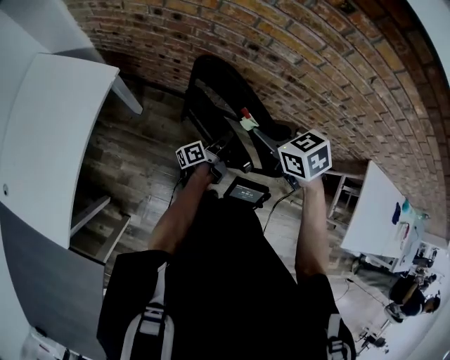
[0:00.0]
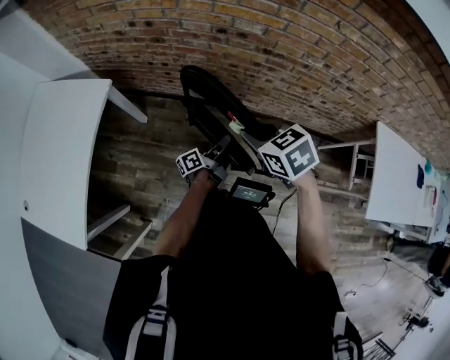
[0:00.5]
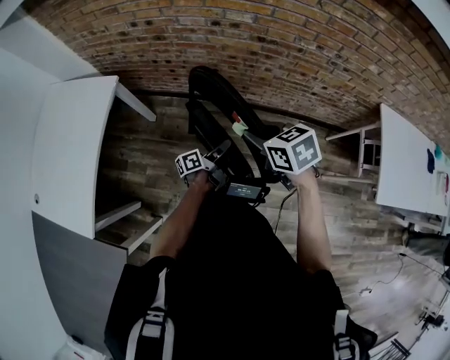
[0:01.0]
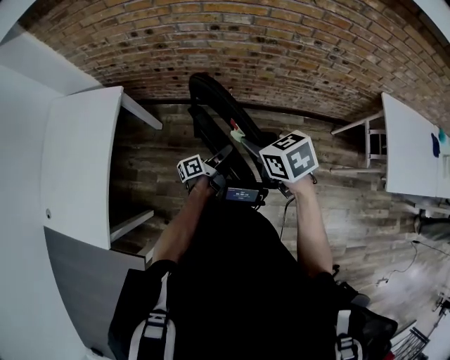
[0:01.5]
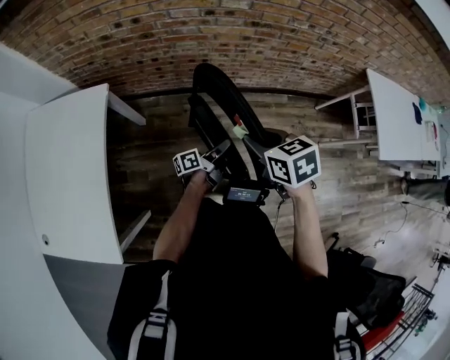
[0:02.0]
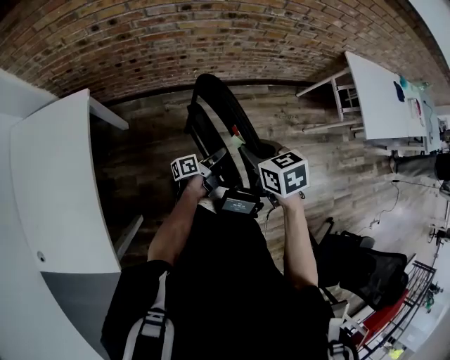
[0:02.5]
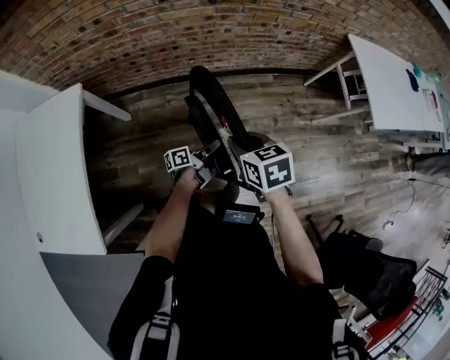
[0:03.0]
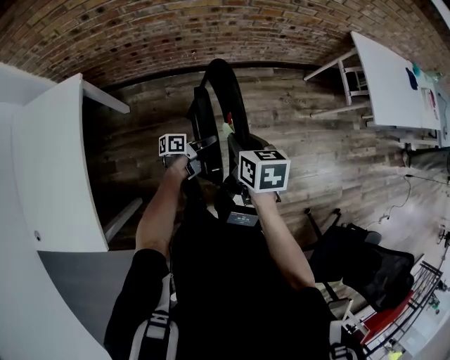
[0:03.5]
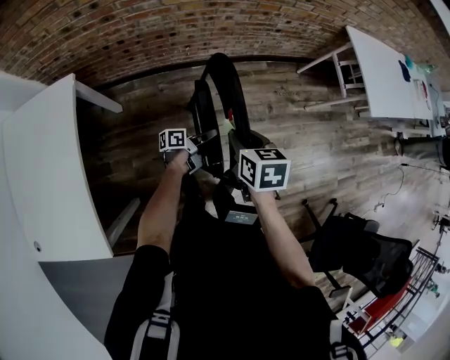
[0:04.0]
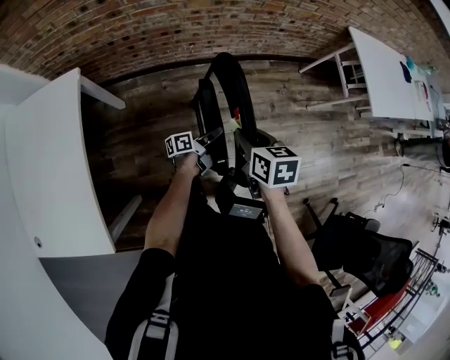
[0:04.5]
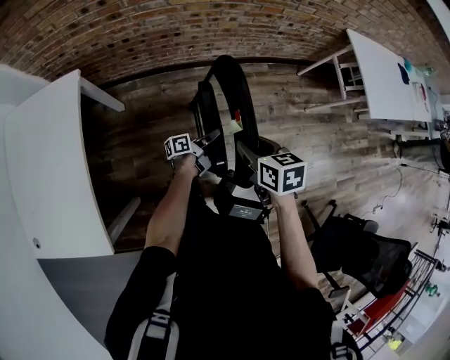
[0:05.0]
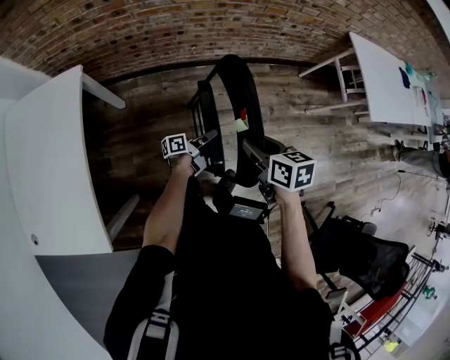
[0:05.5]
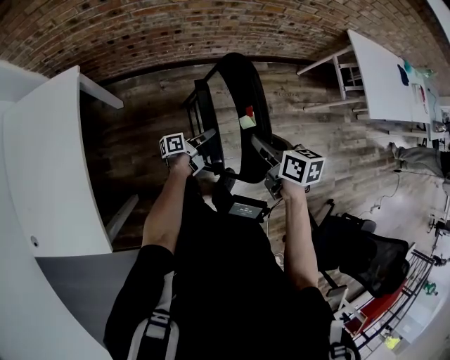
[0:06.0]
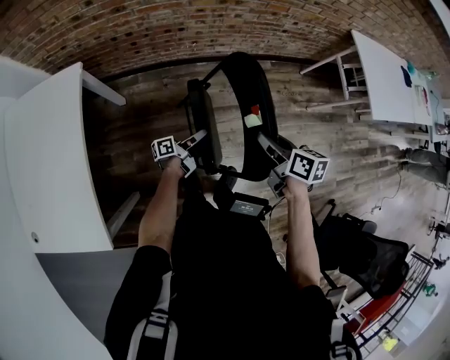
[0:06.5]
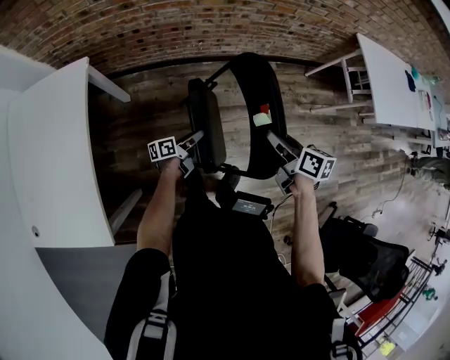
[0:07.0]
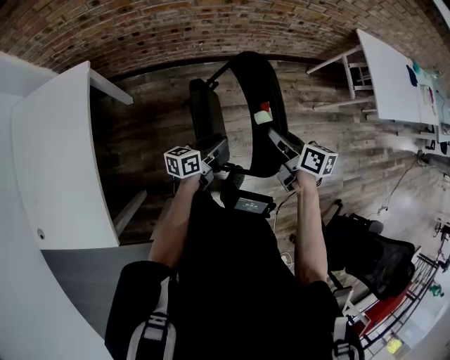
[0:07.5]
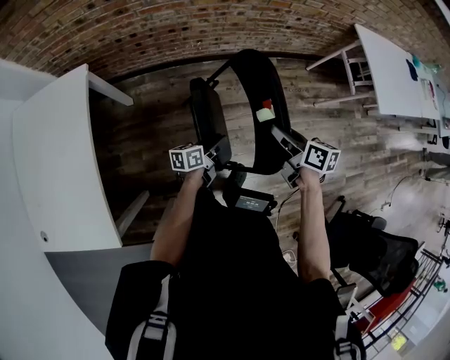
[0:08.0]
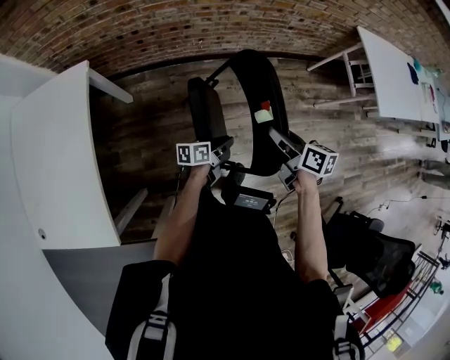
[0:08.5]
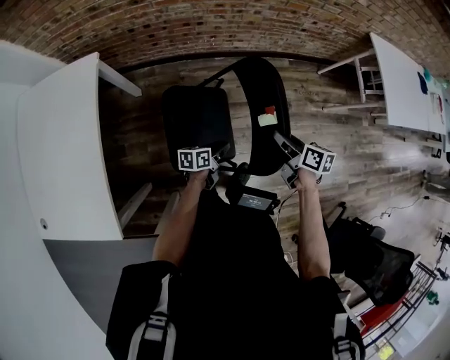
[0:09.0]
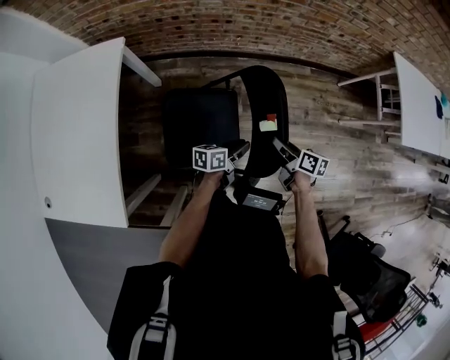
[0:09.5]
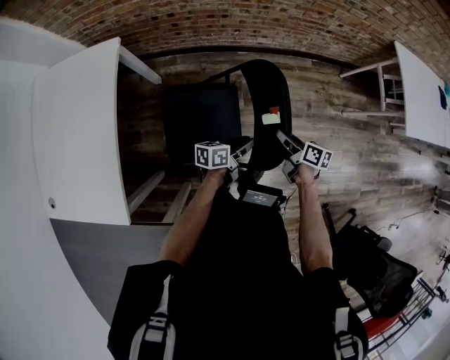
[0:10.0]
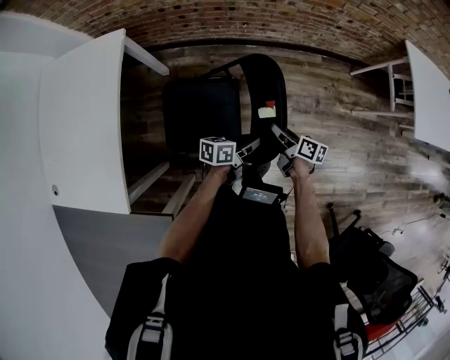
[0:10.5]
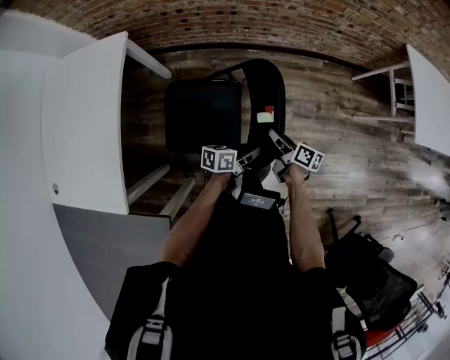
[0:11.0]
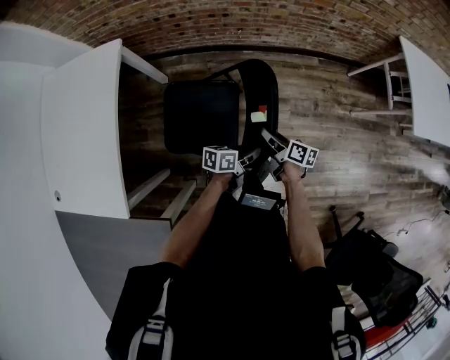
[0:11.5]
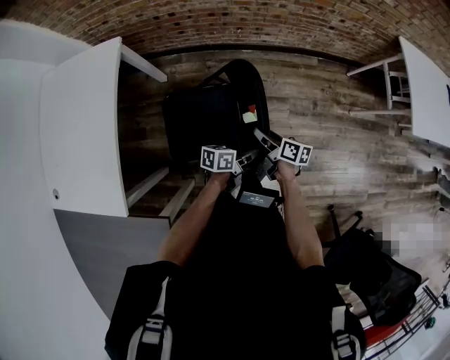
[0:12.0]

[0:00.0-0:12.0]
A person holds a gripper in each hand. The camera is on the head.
0:00.0 to 0:02.0: The right gripper changes place by some 20 cm, and changes its angle by some 30 degrees.
0:02.0 to 0:04.0: The right gripper shifts by some 15 cm, and turns by approximately 30 degrees.
0:04.0 to 0:06.0: The right gripper shifts by some 5 cm.
0:08.0 to 0:10.0: The right gripper is displaced downward by some 15 cm.
0:10.0 to 0:12.0: The right gripper ends up some 5 cm from where it was.

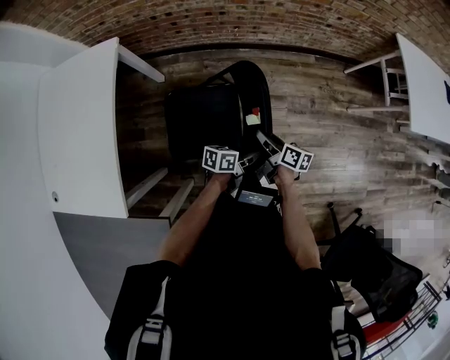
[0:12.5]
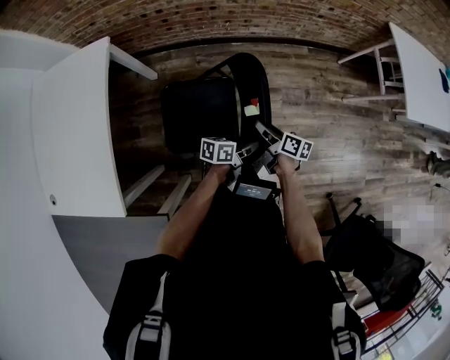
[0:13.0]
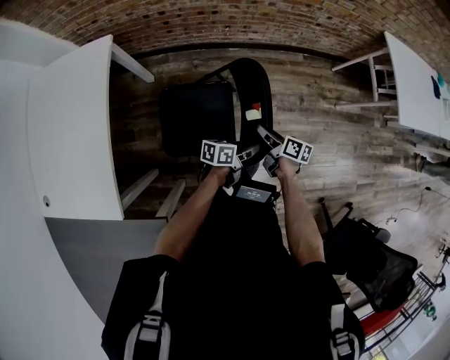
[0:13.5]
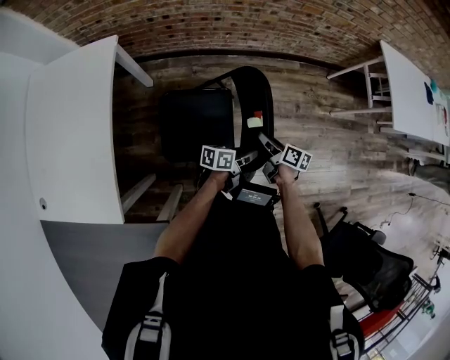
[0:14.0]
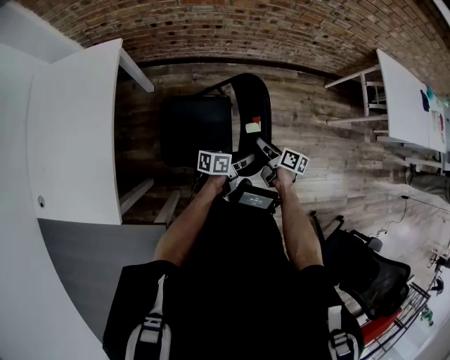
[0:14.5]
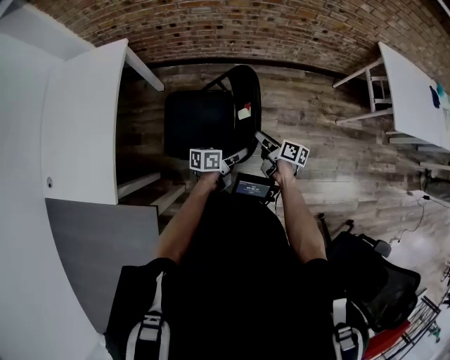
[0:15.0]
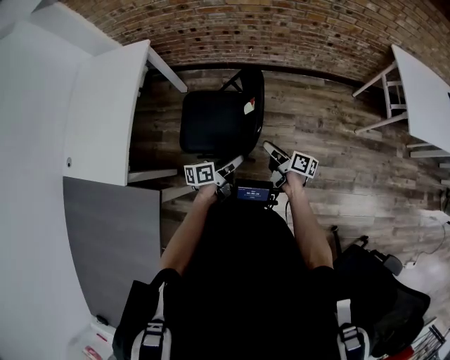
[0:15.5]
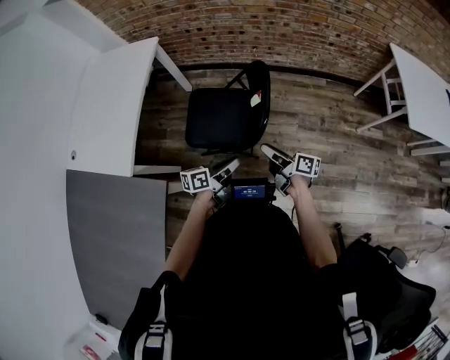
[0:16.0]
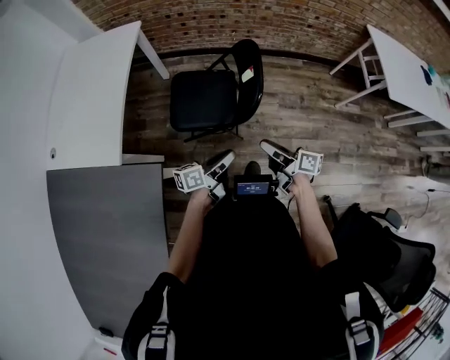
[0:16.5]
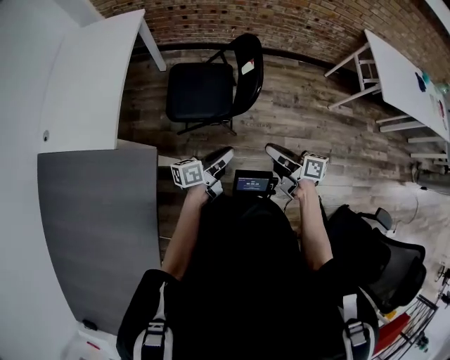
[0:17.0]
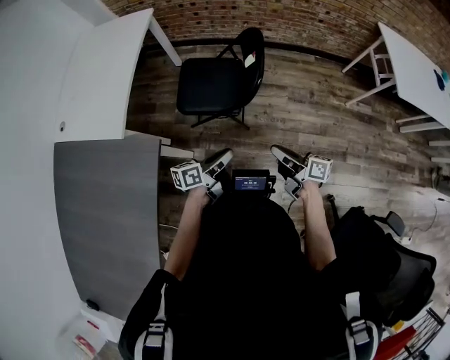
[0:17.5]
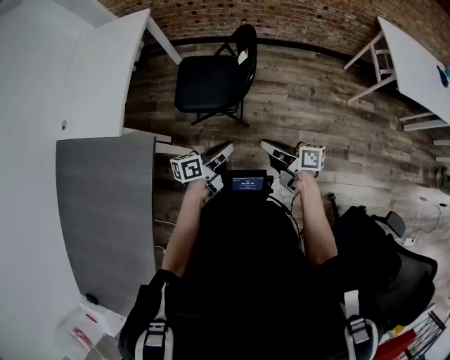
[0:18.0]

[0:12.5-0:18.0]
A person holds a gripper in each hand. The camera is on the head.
0:14.5 to 0:16.0: The right gripper shifts by roughly 20 cm, and rotates some 30 degrees.
0:16.0 to 0:18.0: The right gripper shifts by roughly 20 cm, and closes.

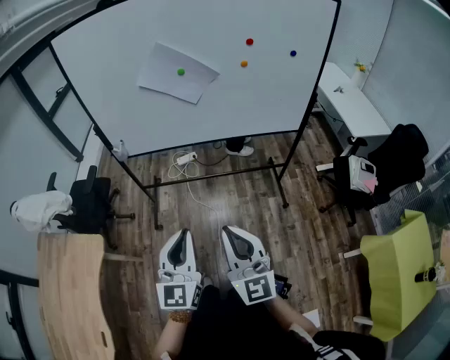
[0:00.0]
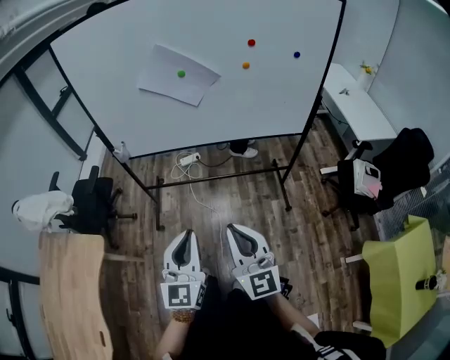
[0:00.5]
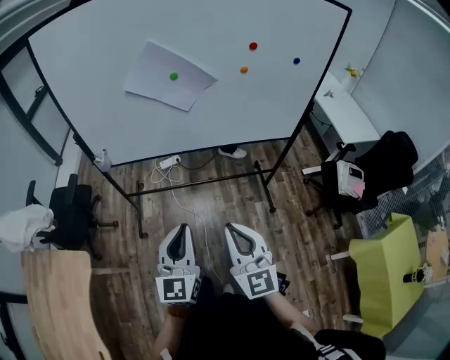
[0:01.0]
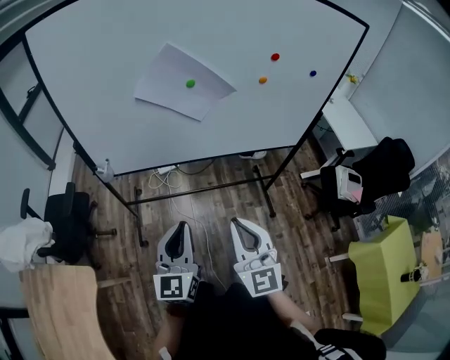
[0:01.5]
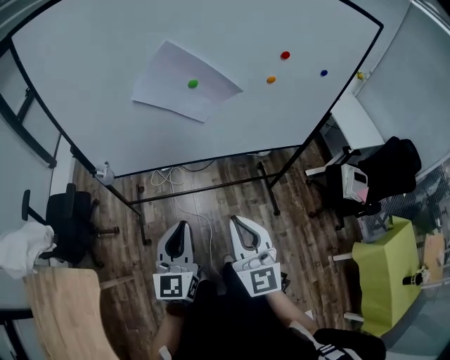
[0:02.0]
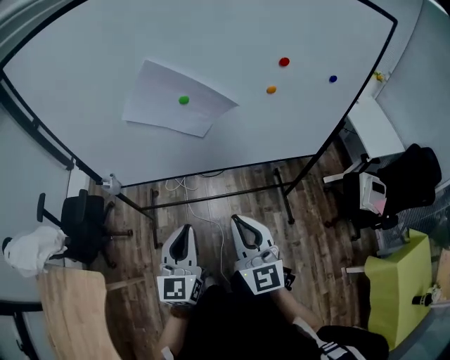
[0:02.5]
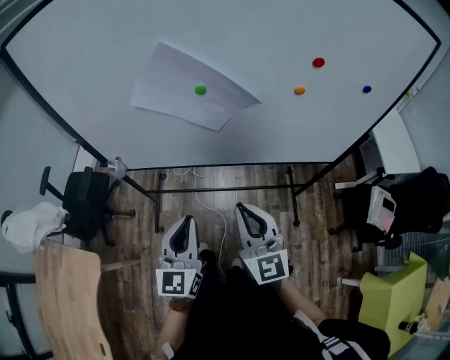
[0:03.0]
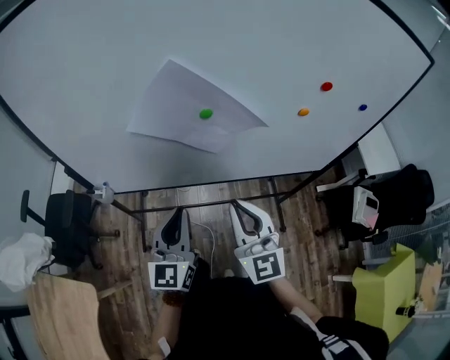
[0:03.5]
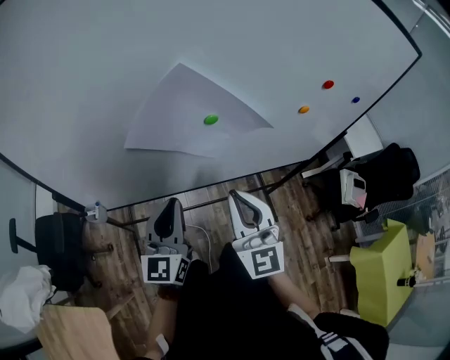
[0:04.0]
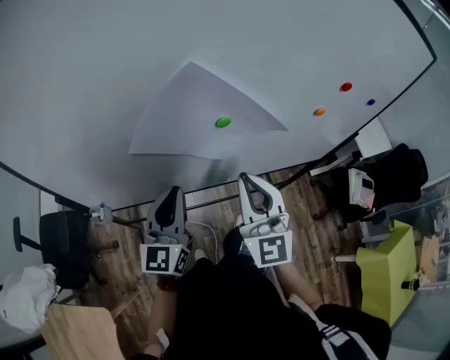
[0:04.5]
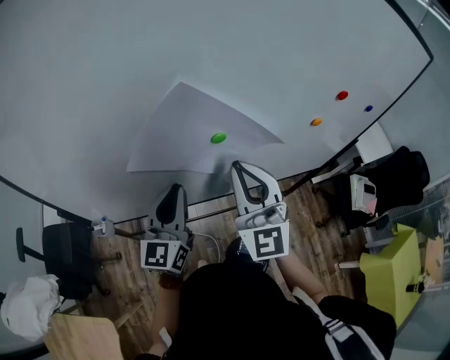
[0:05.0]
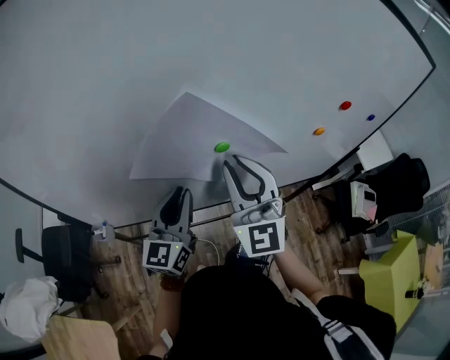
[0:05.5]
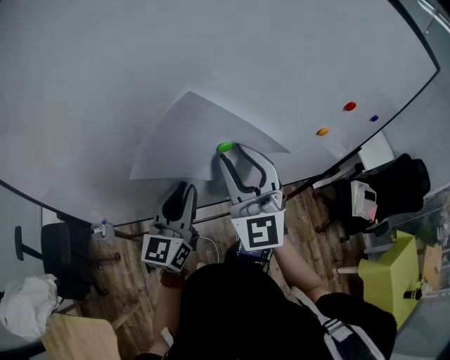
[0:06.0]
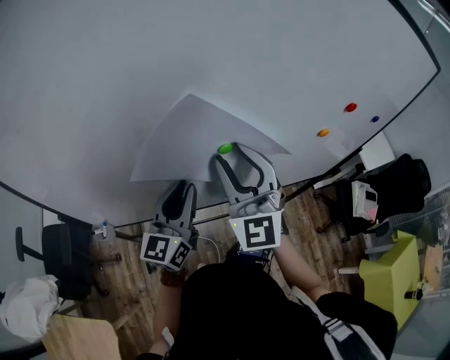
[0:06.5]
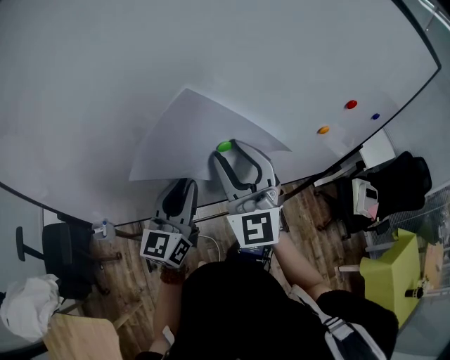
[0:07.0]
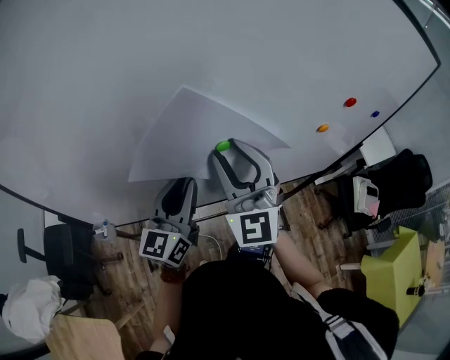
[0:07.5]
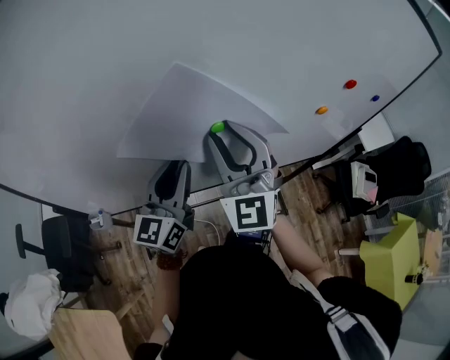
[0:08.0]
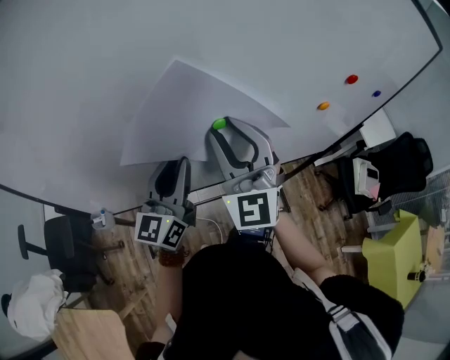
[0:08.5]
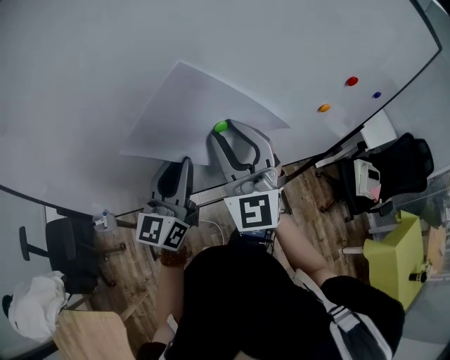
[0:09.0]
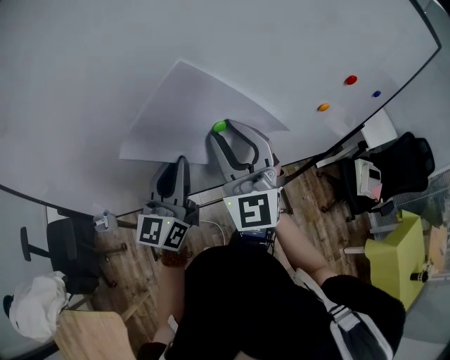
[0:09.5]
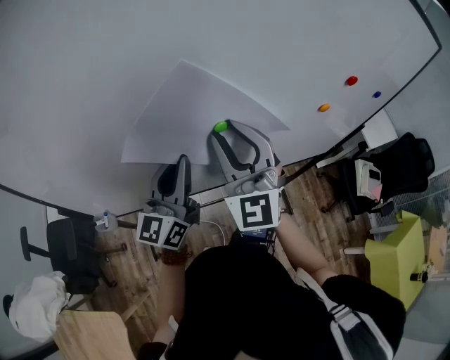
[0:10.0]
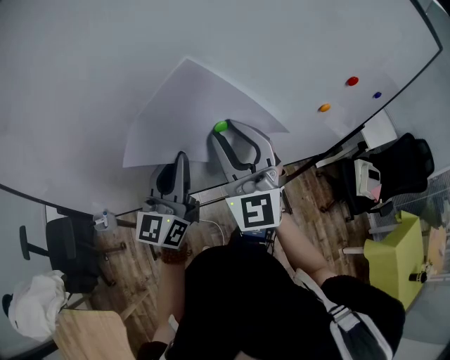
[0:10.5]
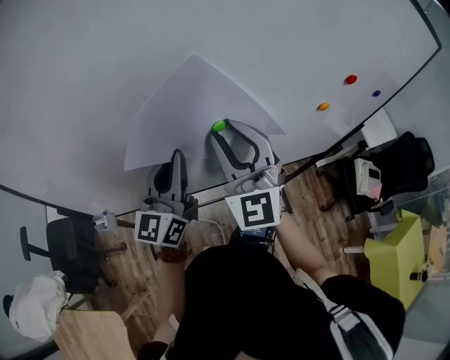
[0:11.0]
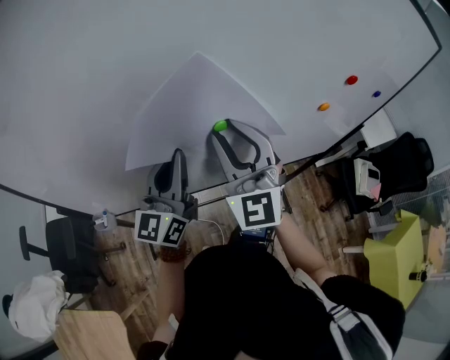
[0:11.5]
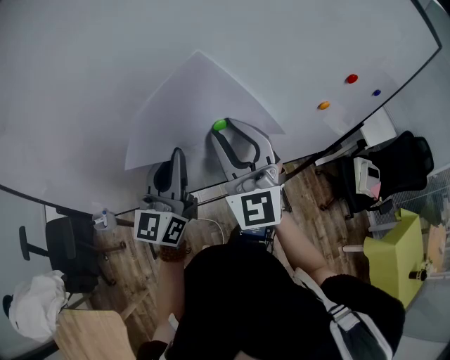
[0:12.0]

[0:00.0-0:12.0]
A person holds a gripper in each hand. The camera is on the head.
0:00.0 to 0:02.0: The grippers both shift forward by approximately 25 cm.
0:02.0 to 0:04.0: Both grippers travel together forward, approximately 25 cm.
0:04.0 to 0:06.0: The grippers both shift forward by some 10 cm. The right gripper turns by roughly 20 degrees, and opens up.
0:06.0 to 0:10.0: There are only small adjustments of the grippers.
0:10.0 to 0:12.0: Both grippers stay put.
